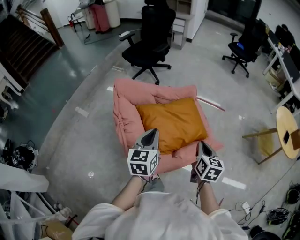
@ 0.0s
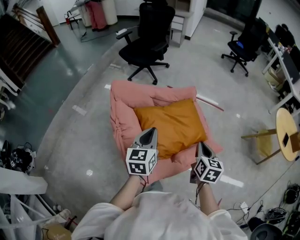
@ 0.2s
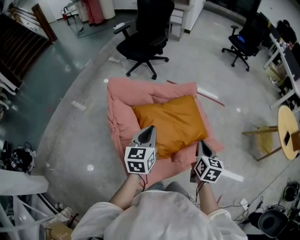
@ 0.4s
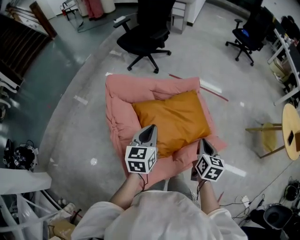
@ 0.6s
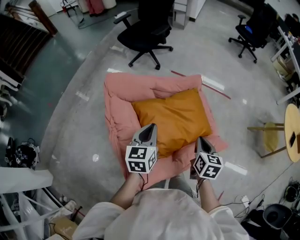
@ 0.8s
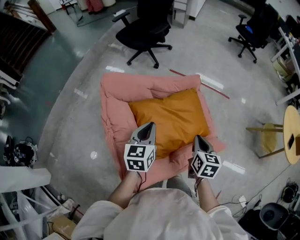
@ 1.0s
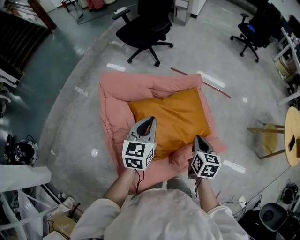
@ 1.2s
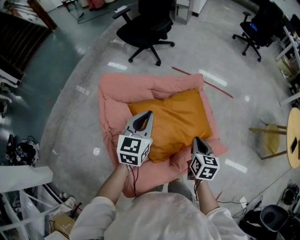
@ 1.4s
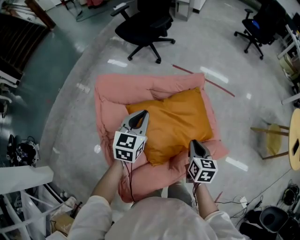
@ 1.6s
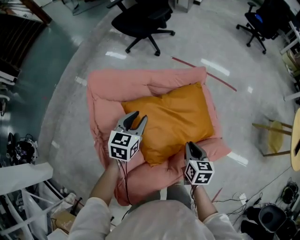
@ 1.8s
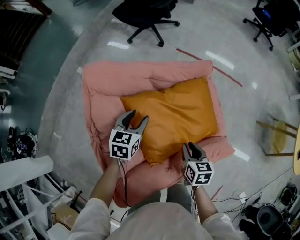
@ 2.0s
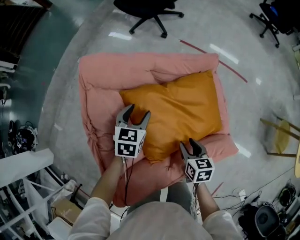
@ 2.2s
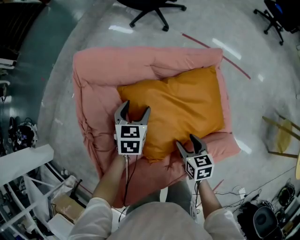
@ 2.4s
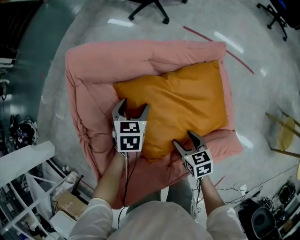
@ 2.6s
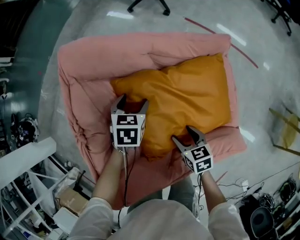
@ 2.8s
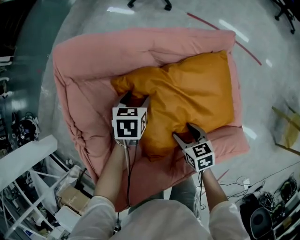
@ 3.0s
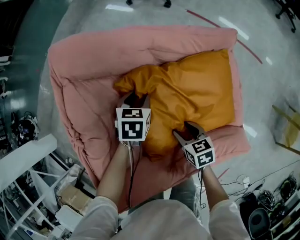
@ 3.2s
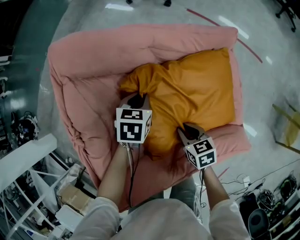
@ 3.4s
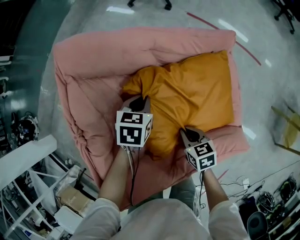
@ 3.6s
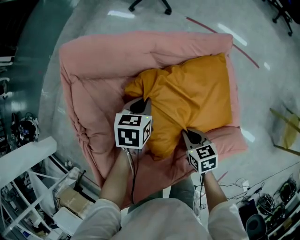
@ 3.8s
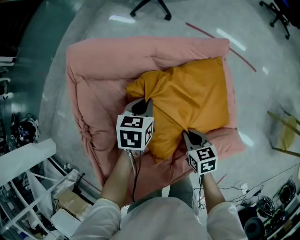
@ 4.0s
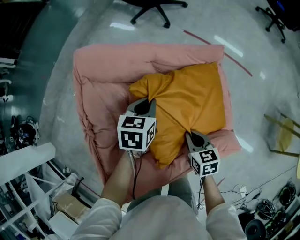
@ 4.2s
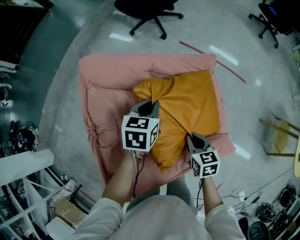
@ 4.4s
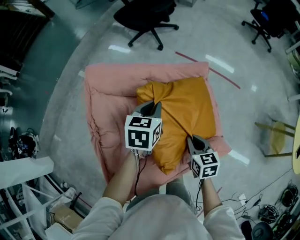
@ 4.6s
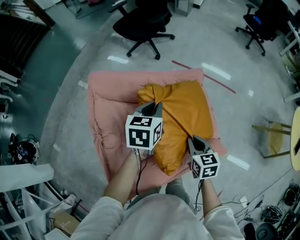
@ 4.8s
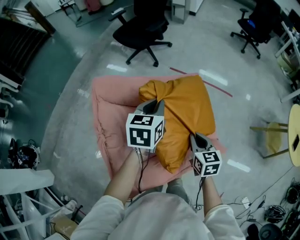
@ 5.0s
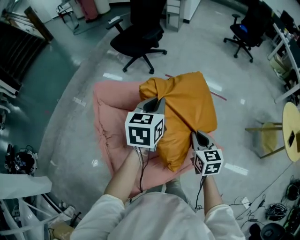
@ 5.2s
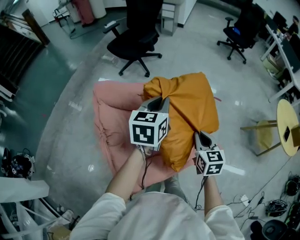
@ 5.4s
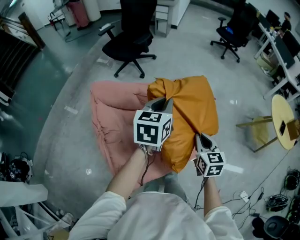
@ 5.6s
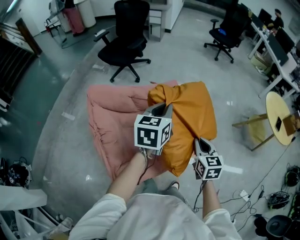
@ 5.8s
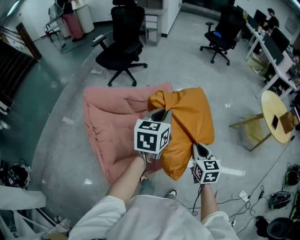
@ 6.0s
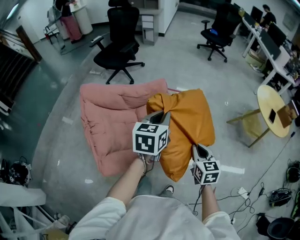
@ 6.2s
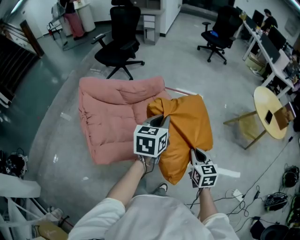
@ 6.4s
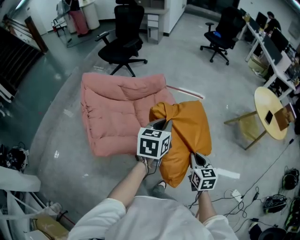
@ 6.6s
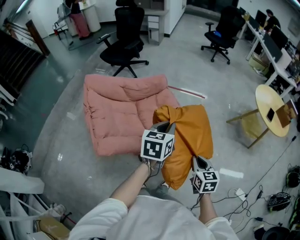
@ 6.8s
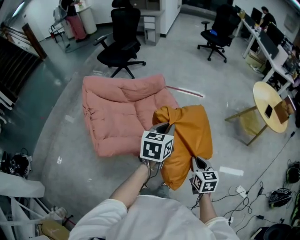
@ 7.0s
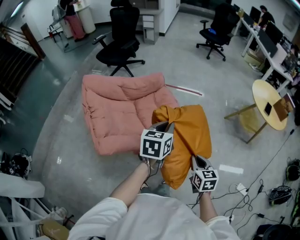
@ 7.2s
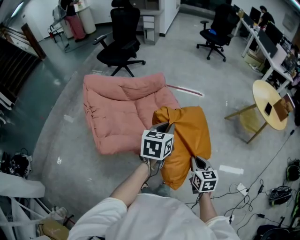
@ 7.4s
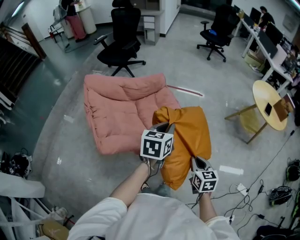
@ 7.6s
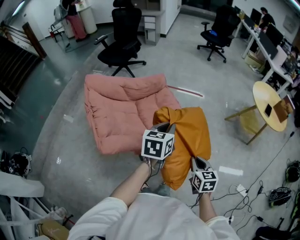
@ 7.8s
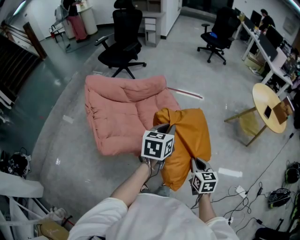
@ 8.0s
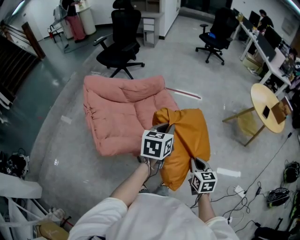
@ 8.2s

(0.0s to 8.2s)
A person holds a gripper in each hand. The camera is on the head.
0.0s - 1.6s: The left gripper heads forward, covering about 20 cm. The right gripper goes some 15 cm forward and downward.
1.6s - 3.2s: Both grippers travel together downward, roughly 25 cm. The right gripper changes its angle by some 40 degrees, and opens up, while the left gripper angles its fingers downward, by roughly 40 degrees, and opens up.
3.2s - 5.0s: The two grippers go roughly 25 cm upward. The left gripper tilts its fingers about 30 degrees upward, and closes its fingers; the right gripper changes its angle by about 40 degrees, and closes up.
5.0s - 6.6s: The left gripper is displaced to the right and backward by about 35 cm, while the right gripper goes roughly 35 cm backward and to the right.
6.6s - 8.2s: The right gripper moves backward, approximately 5 cm.

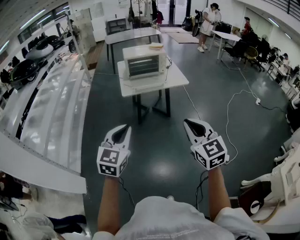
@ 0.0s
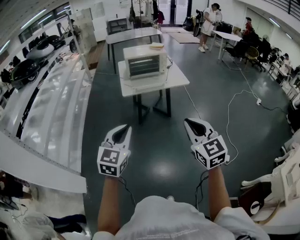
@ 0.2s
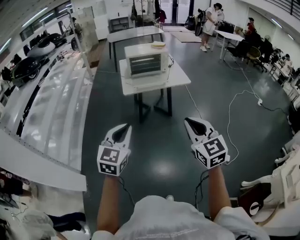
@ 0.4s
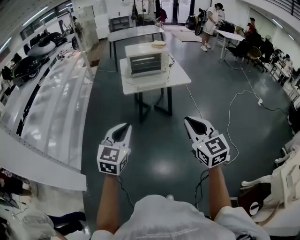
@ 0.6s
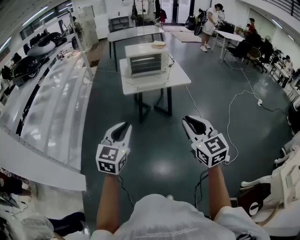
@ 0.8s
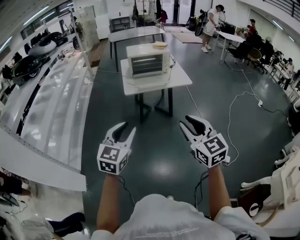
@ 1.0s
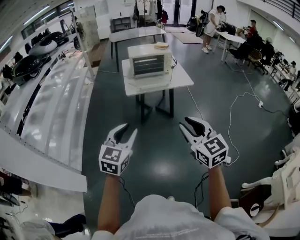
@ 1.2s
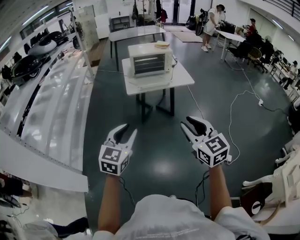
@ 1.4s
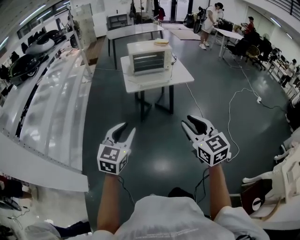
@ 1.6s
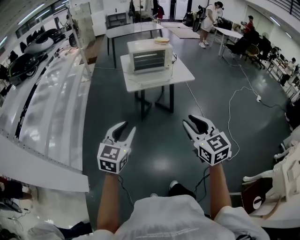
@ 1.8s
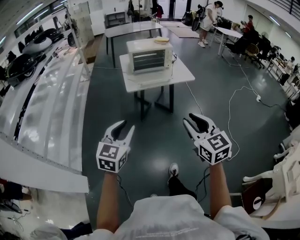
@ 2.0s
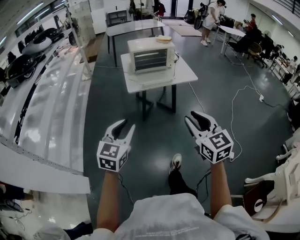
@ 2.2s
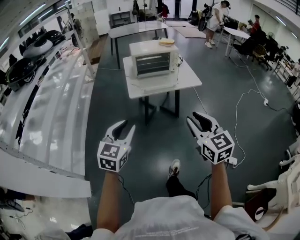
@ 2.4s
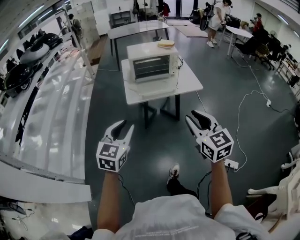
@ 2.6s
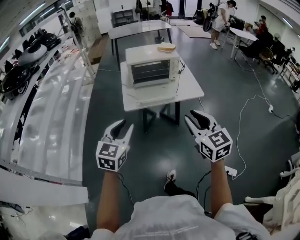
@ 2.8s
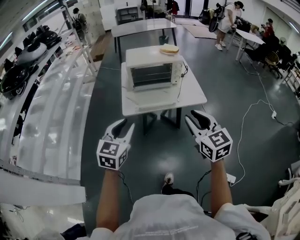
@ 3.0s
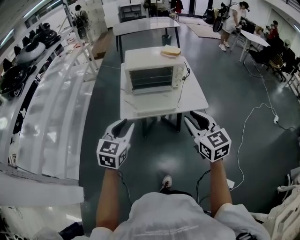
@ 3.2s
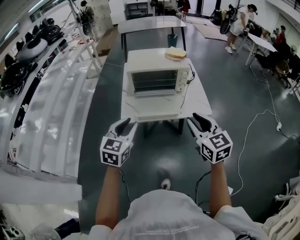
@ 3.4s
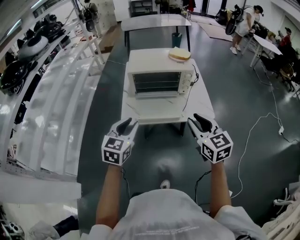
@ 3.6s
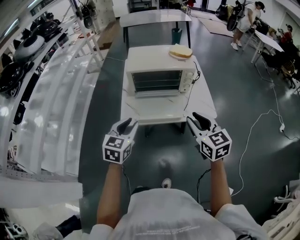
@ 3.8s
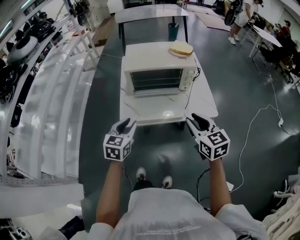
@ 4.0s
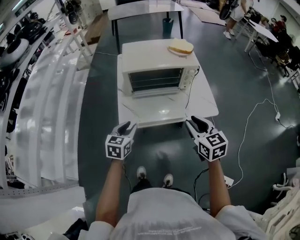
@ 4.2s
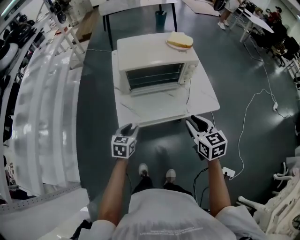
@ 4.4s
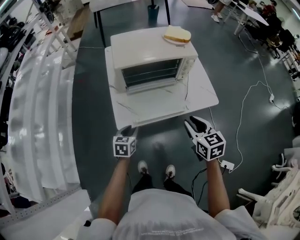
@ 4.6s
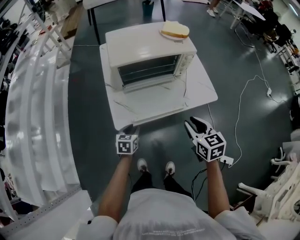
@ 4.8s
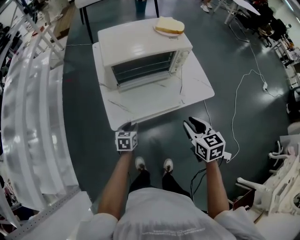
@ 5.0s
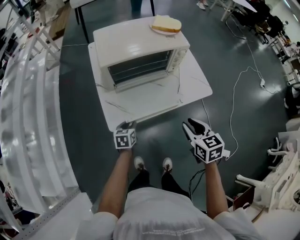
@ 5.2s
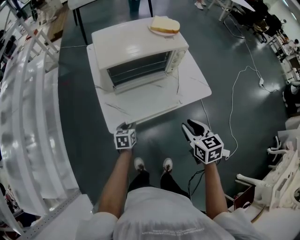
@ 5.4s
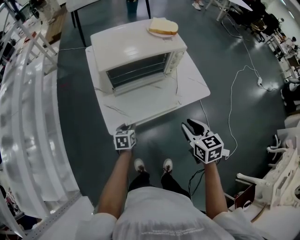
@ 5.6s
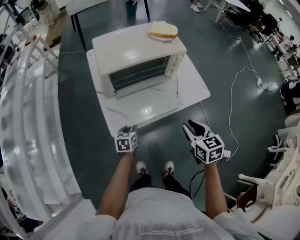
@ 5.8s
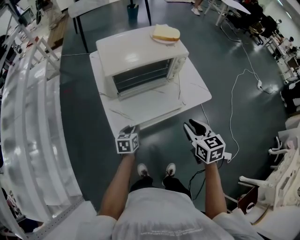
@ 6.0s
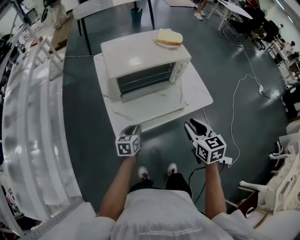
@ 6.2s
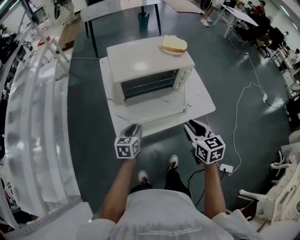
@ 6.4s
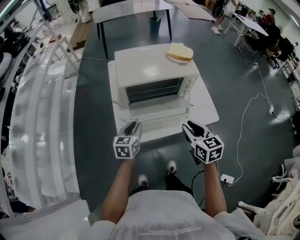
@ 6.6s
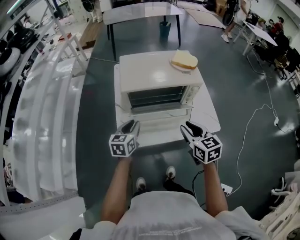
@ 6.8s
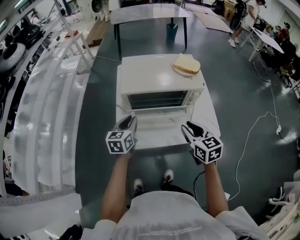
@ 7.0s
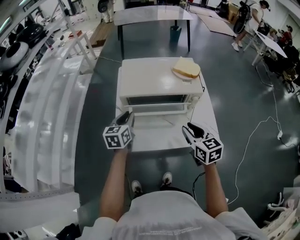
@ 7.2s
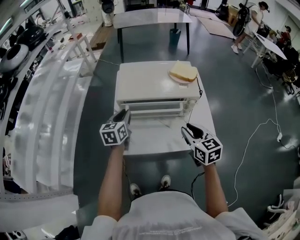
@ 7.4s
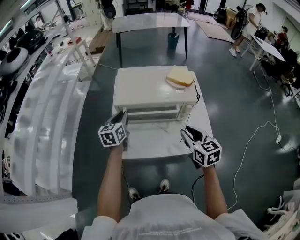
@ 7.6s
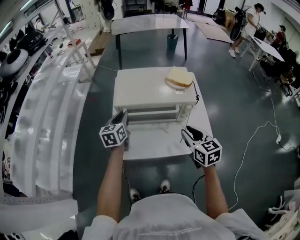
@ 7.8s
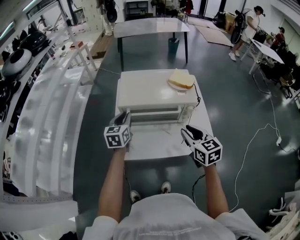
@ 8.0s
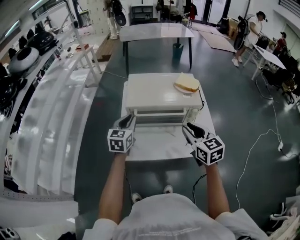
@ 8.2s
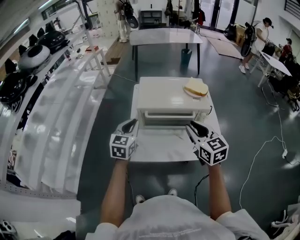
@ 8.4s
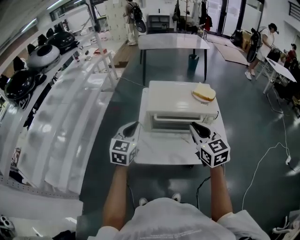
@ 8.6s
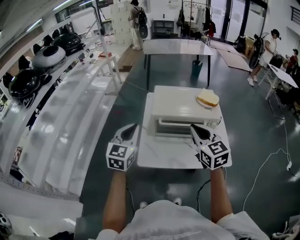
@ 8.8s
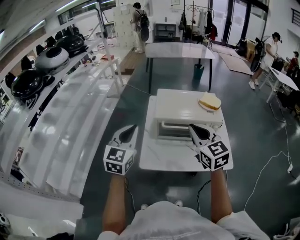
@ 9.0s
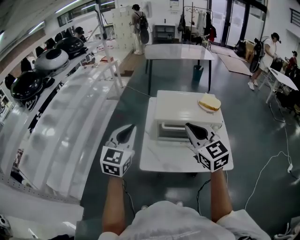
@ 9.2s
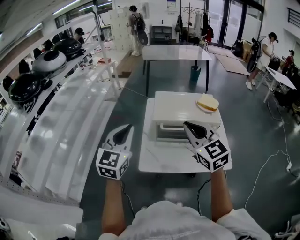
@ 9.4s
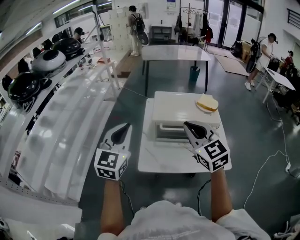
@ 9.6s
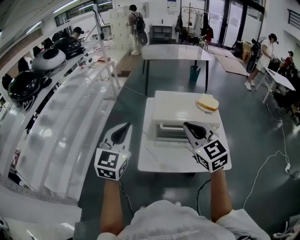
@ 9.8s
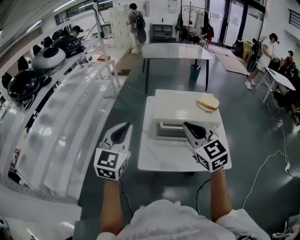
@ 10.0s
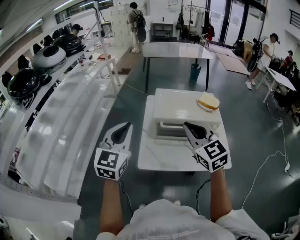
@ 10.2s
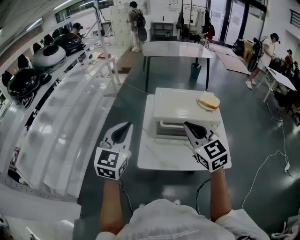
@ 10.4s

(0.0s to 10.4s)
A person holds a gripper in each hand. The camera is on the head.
0.0s - 1.4s: The right gripper opens its fingers, while the left gripper opens its fingers.
1.4s - 3.0s: The two grippers go roughly 35 cm forward.
3.0s - 4.4s: Both grippers travel together forward and downward, approximately 30 cm. The left gripper rotates roughly 30 degrees; the right gripper swivels some 20 degrees.
4.4s - 6.0s: The left gripper shifts about 10 cm downward.
6.0s - 7.4s: The left gripper travels upward by roughly 20 cm, and changes its angle by some 30 degrees. Meanwhile the right gripper shifts by approximately 15 cm, and turns by roughly 20 degrees.
7.4s - 9.0s: The right gripper heads upward and to the left, covering roughly 20 cm, rotates about 20 degrees, and closes its fingers; the left gripper is displaced upward, to the left and backward by approximately 25 cm, and swivels roughly 30 degrees.
9.0s - 10.4s: The left gripper moves approximately 5 cm.

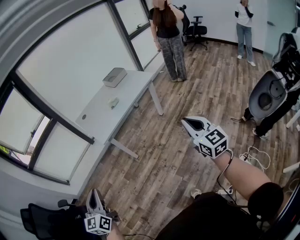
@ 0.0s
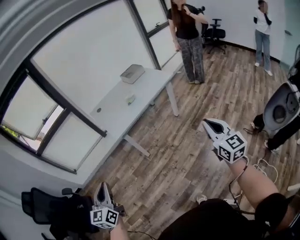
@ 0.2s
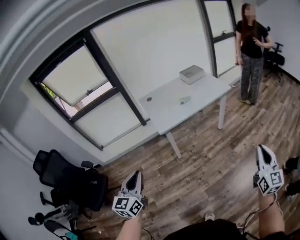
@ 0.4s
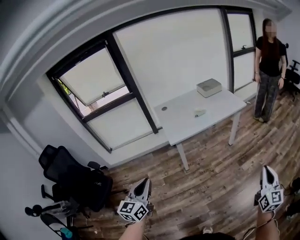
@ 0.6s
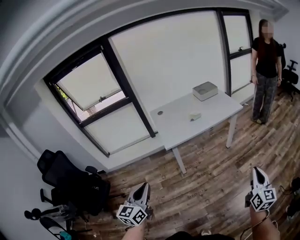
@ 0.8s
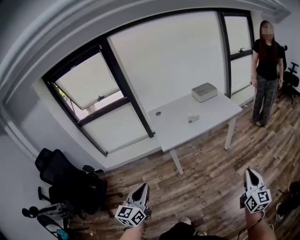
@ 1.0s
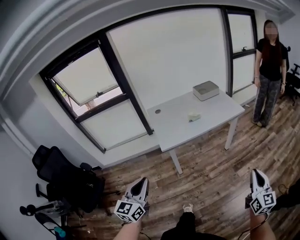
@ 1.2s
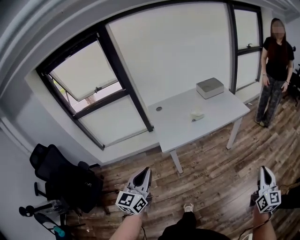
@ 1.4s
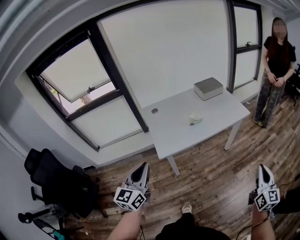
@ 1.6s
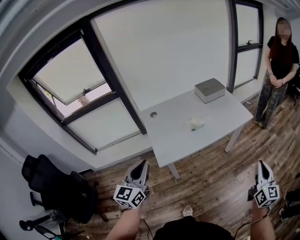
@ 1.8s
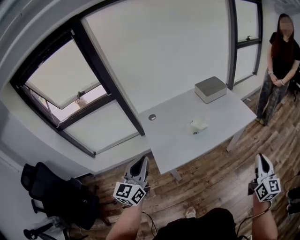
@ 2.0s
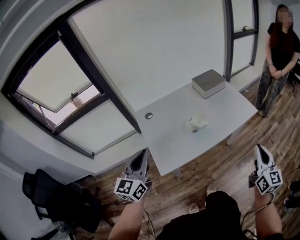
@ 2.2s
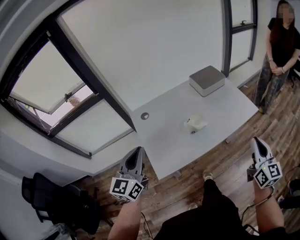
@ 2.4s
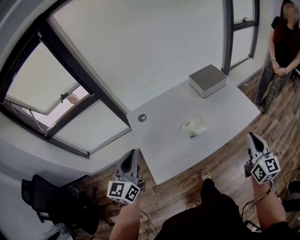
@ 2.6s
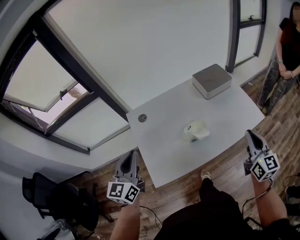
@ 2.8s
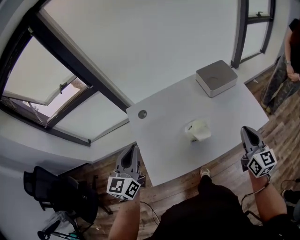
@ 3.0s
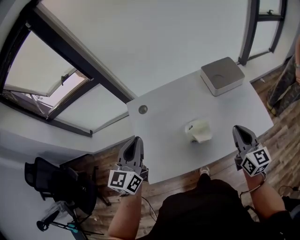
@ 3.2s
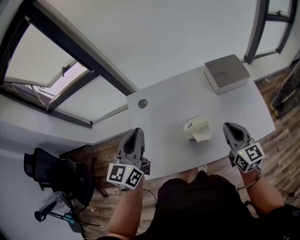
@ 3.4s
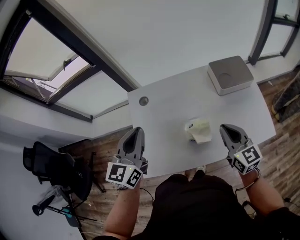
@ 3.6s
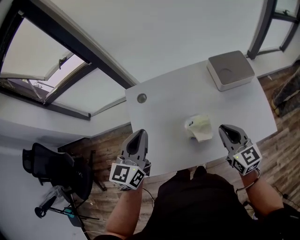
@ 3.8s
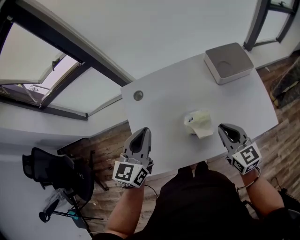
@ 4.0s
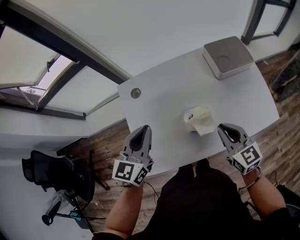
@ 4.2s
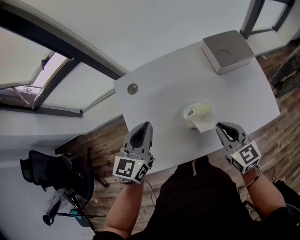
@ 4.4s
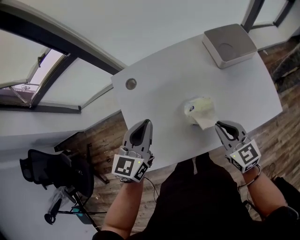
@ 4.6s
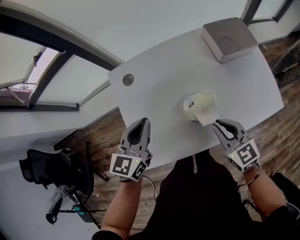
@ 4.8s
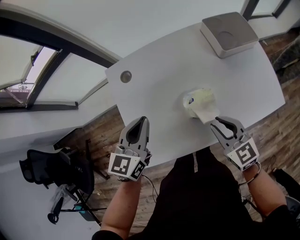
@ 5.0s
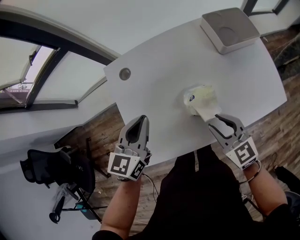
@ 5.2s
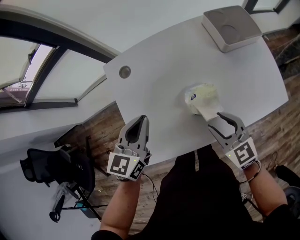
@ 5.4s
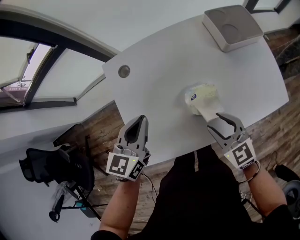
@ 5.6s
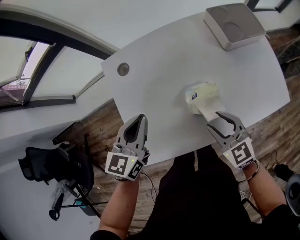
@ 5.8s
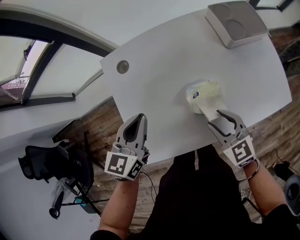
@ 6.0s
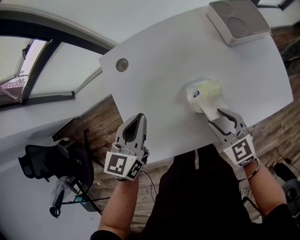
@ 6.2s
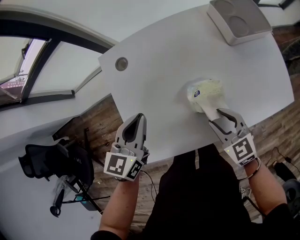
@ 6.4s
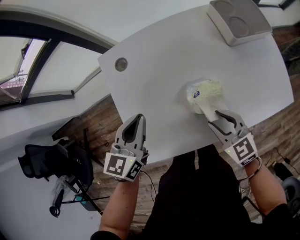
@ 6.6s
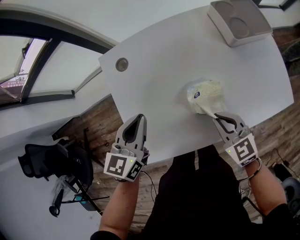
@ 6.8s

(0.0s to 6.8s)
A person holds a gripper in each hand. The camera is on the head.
0.0s - 1.4s: The two grippers go roughly 20 cm forward.
1.4s - 2.8s: The two grippers travel together, forward, some 50 cm.
2.8s - 4.0s: The right gripper moves forward, downward and to the left, some 20 cm, and rotates roughly 30 degrees. The left gripper shifts some 15 cm to the right, forward and downward.
4.0s - 5.4s: The left gripper is displaced downward by approximately 10 cm; the right gripper shifts roughly 10 cm downward and to the left, and opens up.
5.4s - 6.8s: The right gripper closes its fingers.
